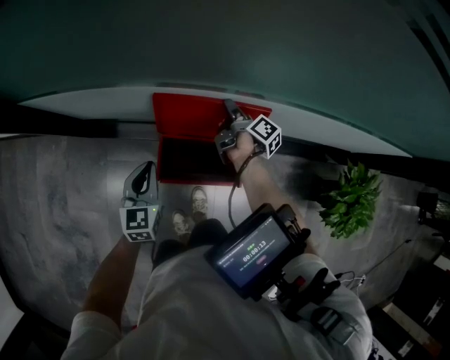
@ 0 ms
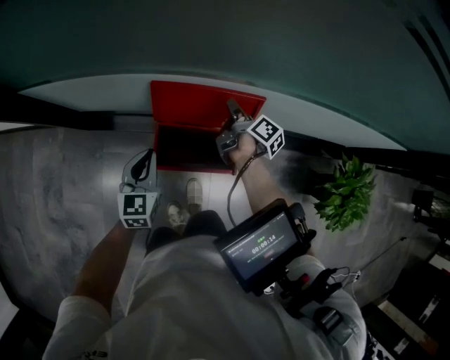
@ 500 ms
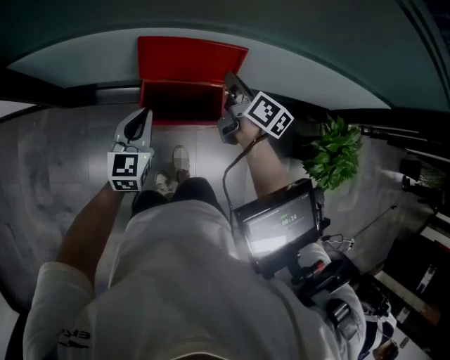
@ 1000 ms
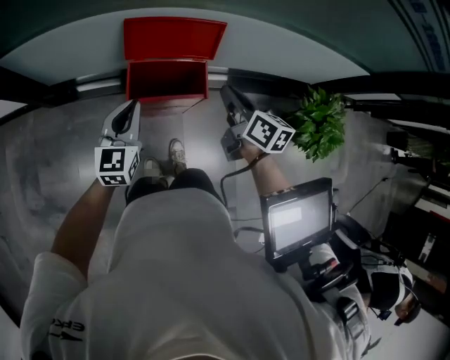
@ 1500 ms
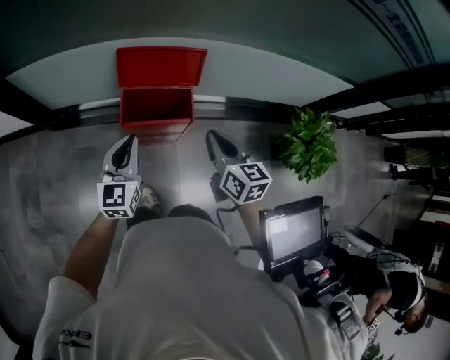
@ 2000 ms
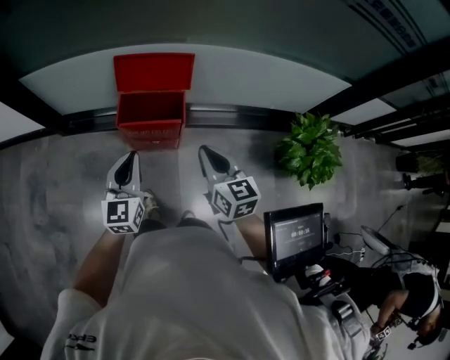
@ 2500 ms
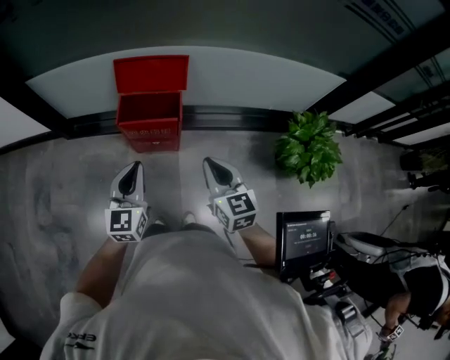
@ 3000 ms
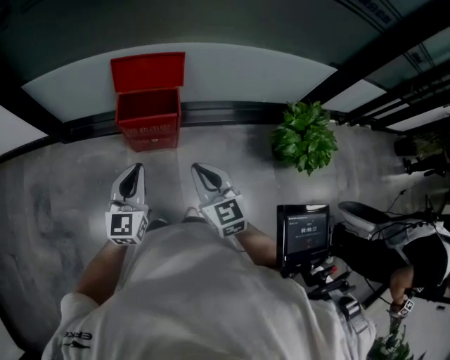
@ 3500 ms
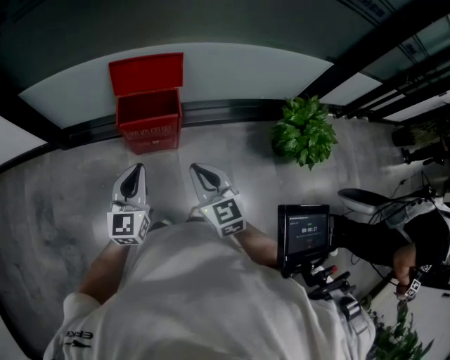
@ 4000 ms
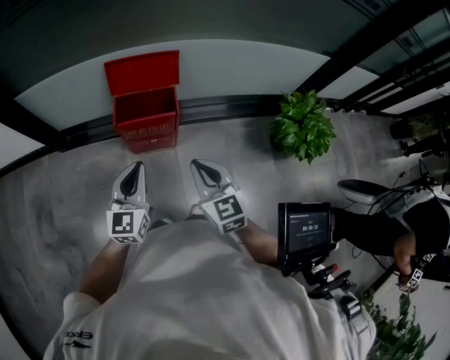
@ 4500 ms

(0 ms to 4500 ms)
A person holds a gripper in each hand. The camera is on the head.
0 ms - 2000 ms: The right gripper shifts approximately 40 cm backward and upward, and rotates around the line of its fingers by about 60 degrees, counterclockwise from behind. The left gripper travels backward and upward by approximately 25 cm.
2000 ms - 4500 ms: The two grippers go approximately 20 cm backward. The right gripper rotates roughly 20 degrees.

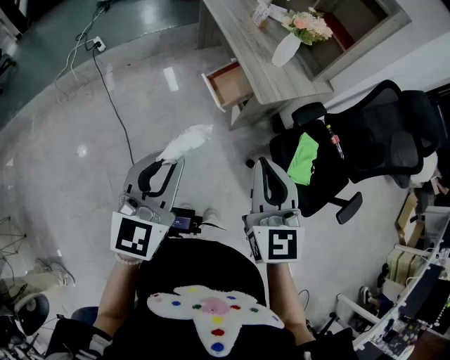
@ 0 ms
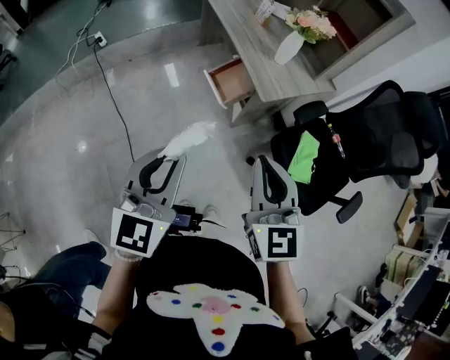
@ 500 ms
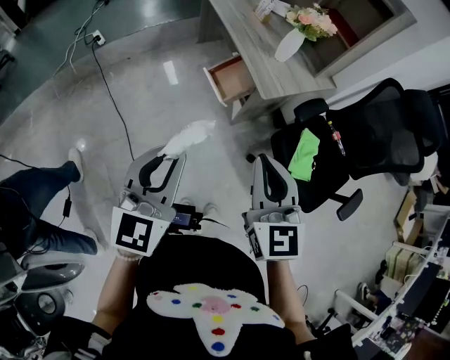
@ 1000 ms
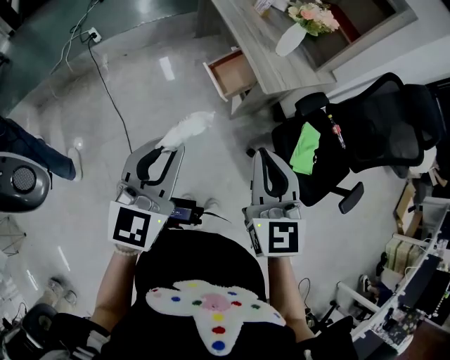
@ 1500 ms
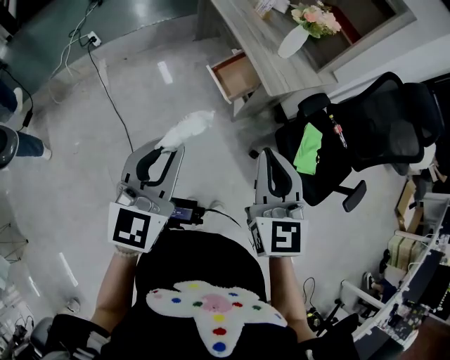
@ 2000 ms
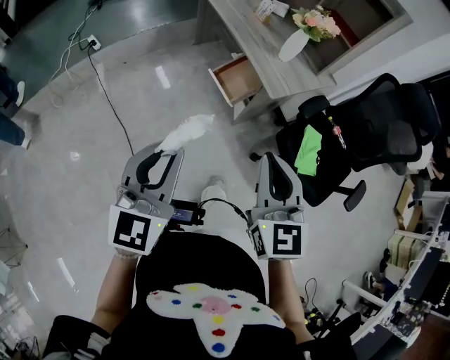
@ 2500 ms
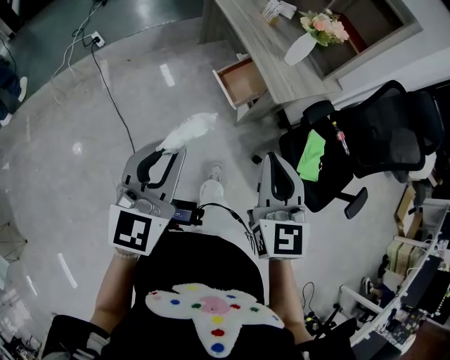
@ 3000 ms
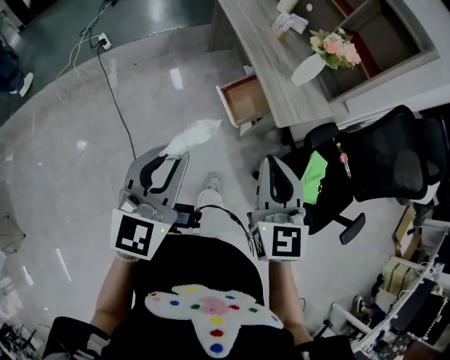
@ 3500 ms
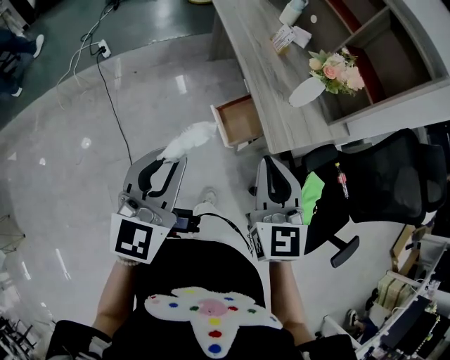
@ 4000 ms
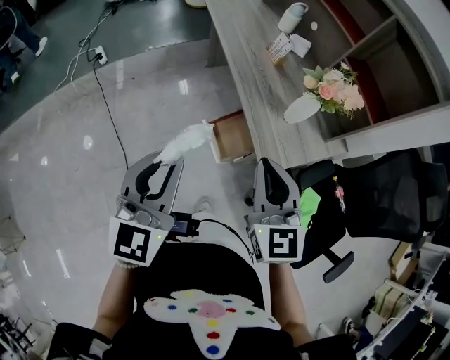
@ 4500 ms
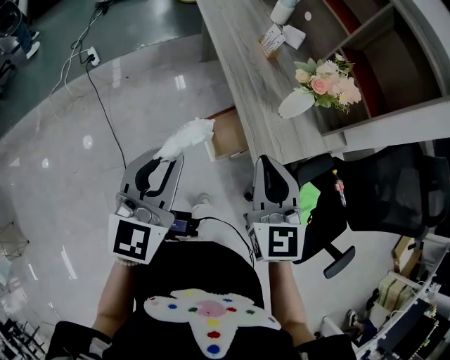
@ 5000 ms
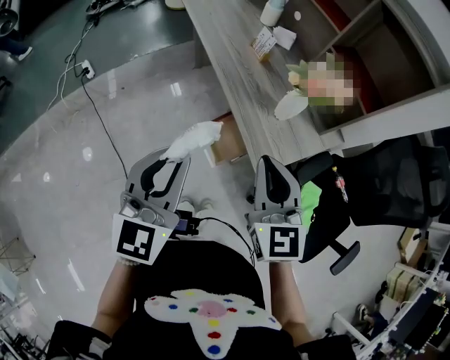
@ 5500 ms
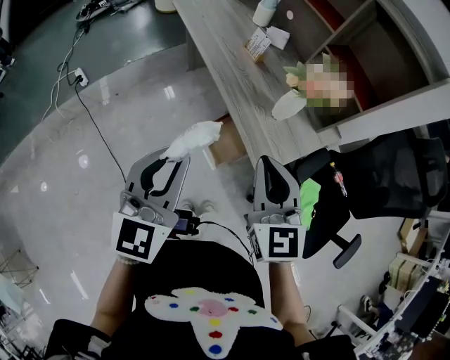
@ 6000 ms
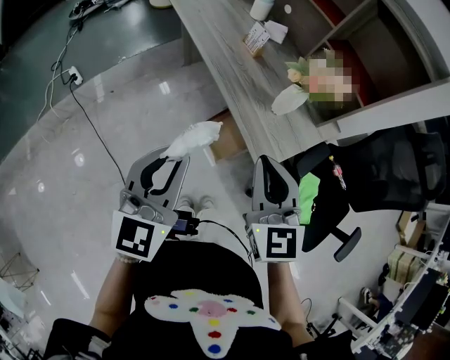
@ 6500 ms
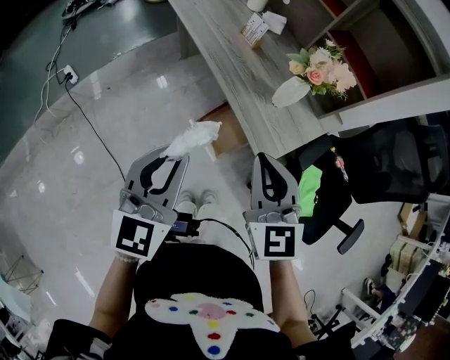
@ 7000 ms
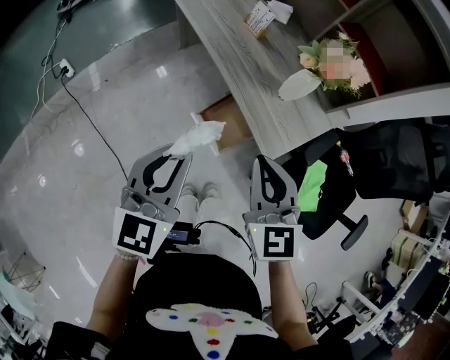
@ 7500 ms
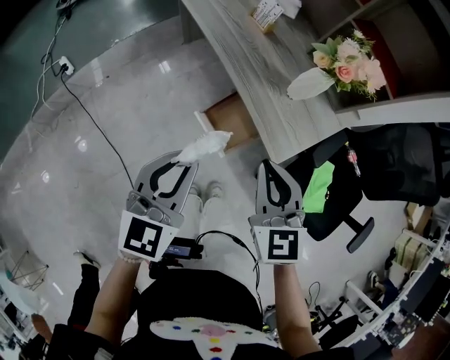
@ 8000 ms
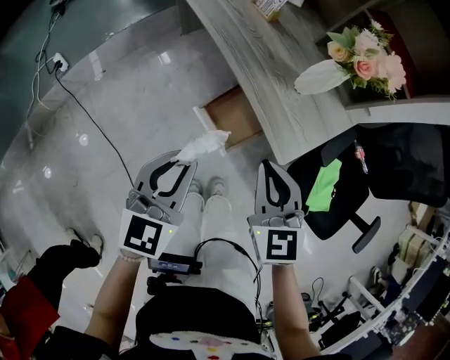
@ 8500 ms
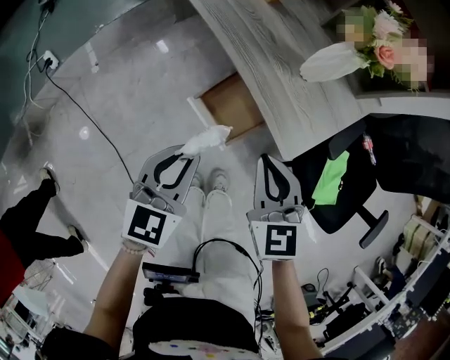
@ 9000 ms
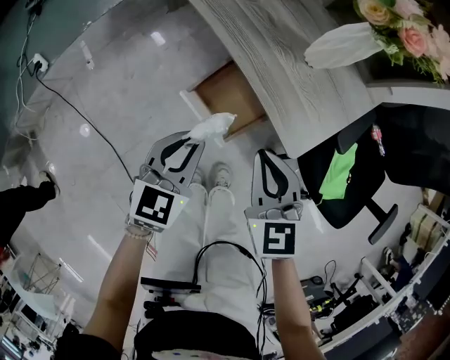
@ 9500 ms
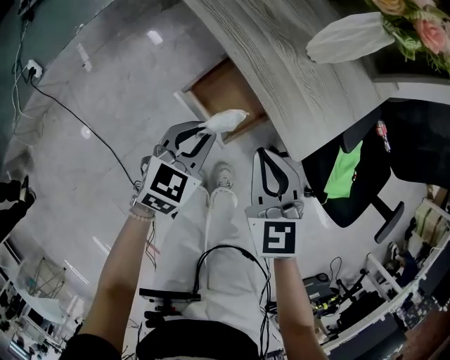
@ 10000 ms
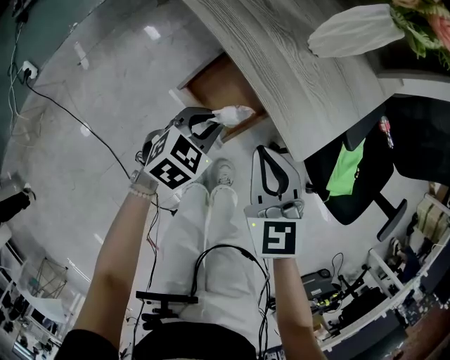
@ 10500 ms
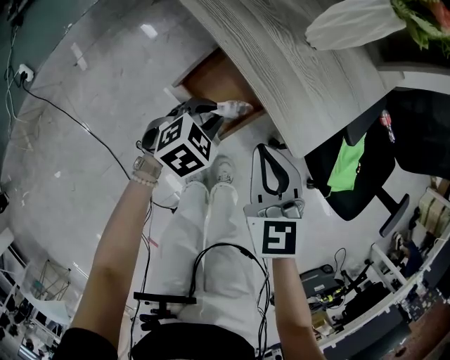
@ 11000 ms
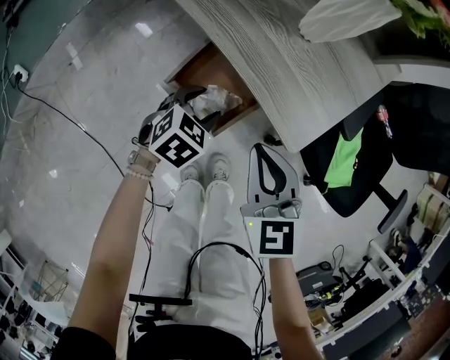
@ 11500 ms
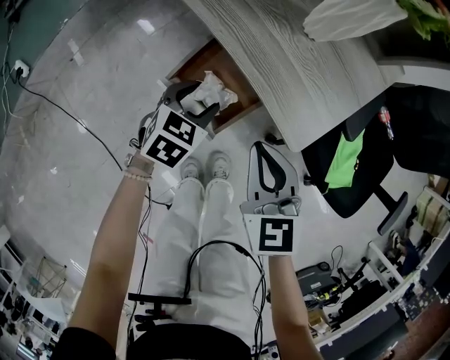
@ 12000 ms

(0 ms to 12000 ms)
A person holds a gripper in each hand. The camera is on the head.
0 ms - 2000 ms: The left gripper is displaced to the left by some 5 cm.
2000 ms - 4000 ms: The grippers both shift forward by about 20 cm.
4000 ms - 6000 ms: Both grippers travel together forward, some 10 cm.
6000 ms - 8000 ms: The grippers both shift downward by some 10 cm.
8000 ms - 10000 ms: The right gripper heads downward, covering roughly 20 cm, while the left gripper heads downward, covering about 25 cm, and swivels roughly 30 degrees.
10000 ms - 12000 ms: The left gripper goes some 10 cm downward and forward, and opens.

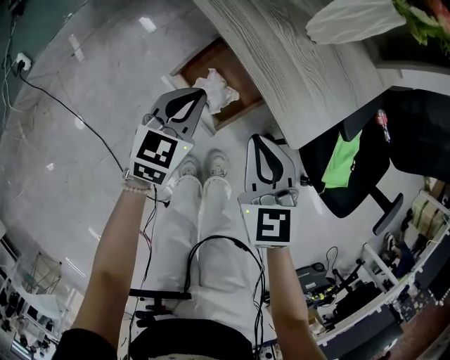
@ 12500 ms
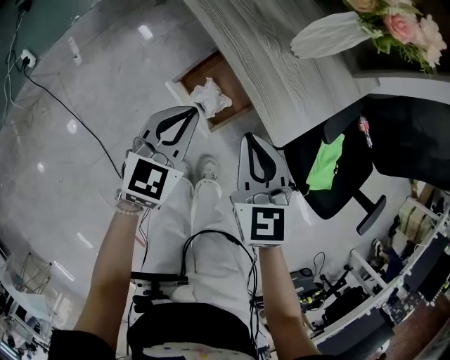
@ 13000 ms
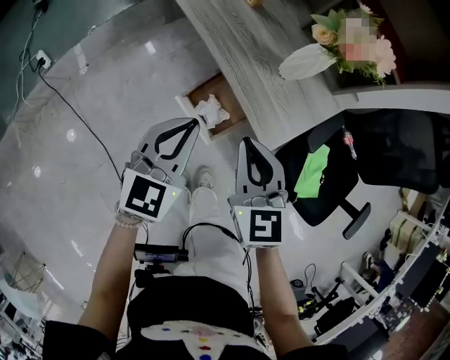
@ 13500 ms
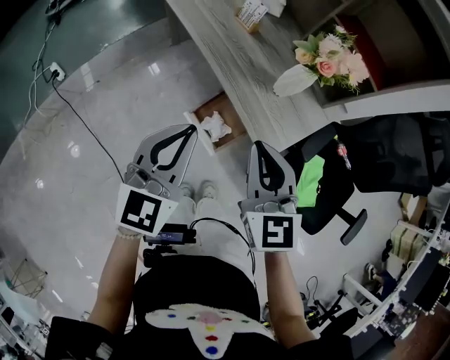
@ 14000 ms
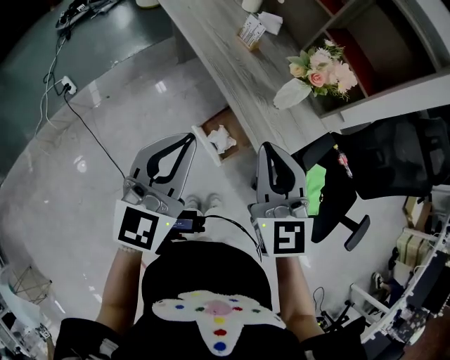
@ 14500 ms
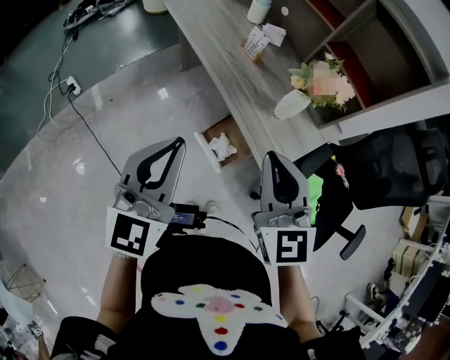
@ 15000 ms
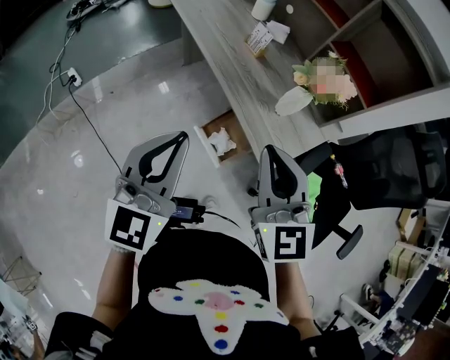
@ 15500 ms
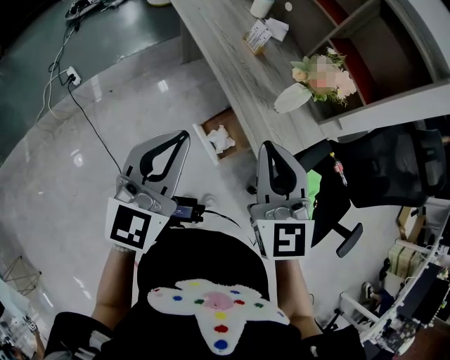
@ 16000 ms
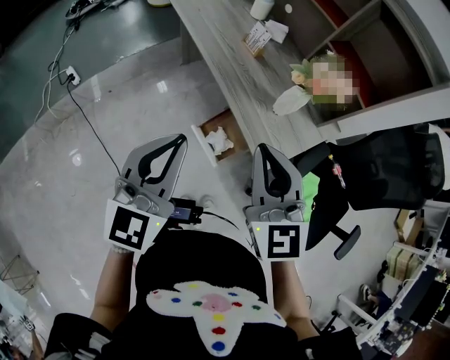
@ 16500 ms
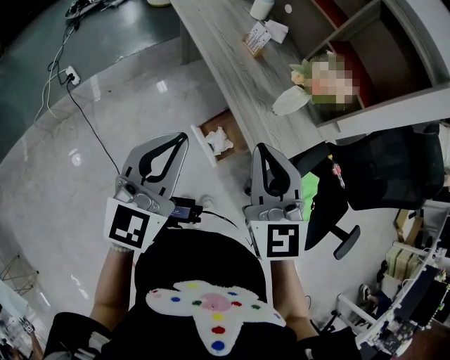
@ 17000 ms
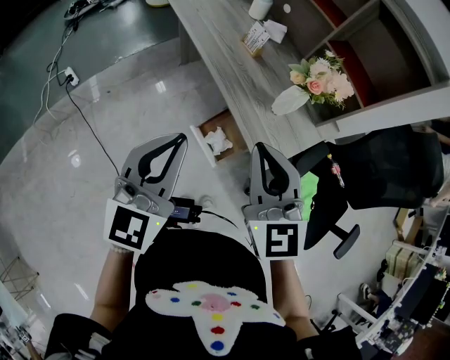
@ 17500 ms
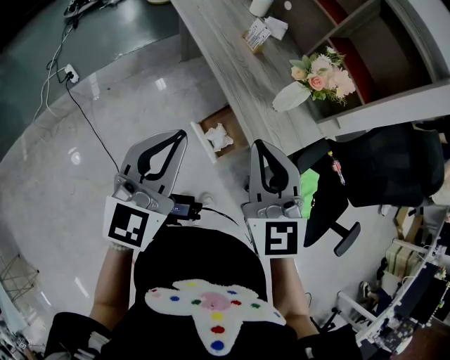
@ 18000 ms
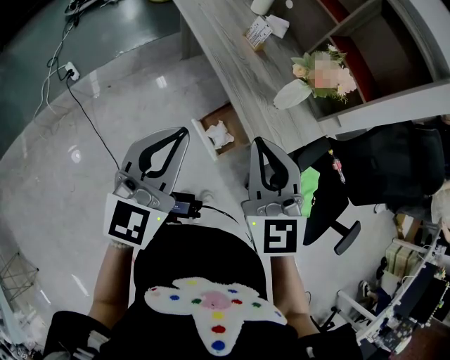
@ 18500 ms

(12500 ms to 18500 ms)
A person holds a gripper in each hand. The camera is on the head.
12500 ms - 14500 ms: The two grippers go roughly 35 cm upward. The right gripper swivels about 30 degrees. The left gripper rotates about 30 degrees.
14500 ms - 16500 ms: There are only small adjustments of the grippers.
16500 ms - 18500 ms: The two grippers keep their place.

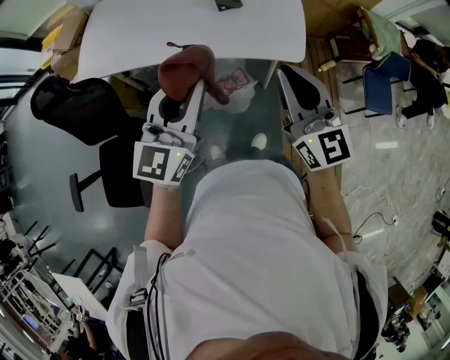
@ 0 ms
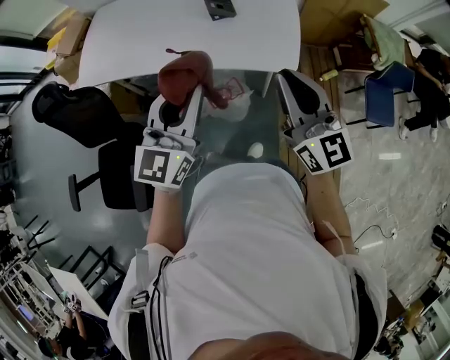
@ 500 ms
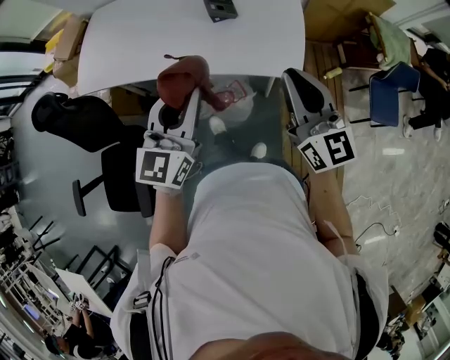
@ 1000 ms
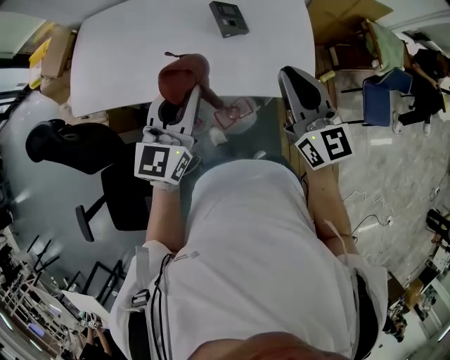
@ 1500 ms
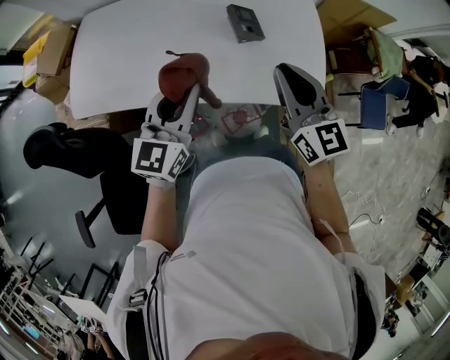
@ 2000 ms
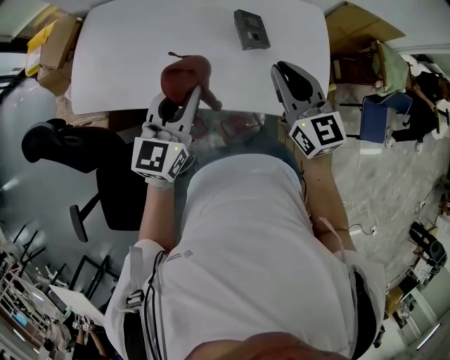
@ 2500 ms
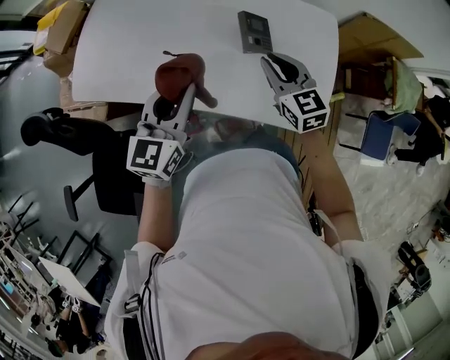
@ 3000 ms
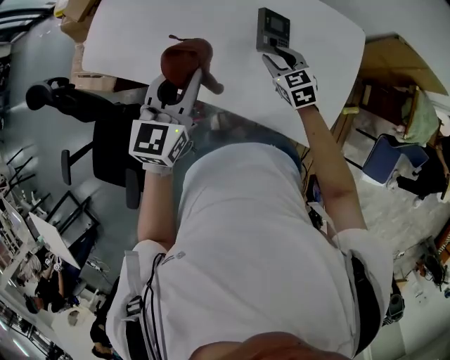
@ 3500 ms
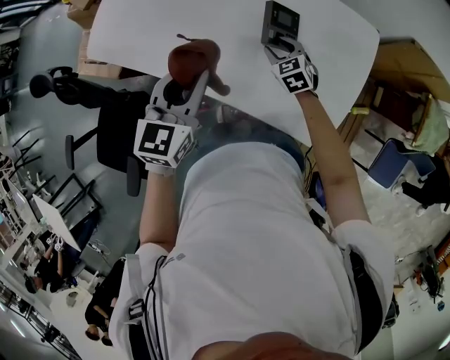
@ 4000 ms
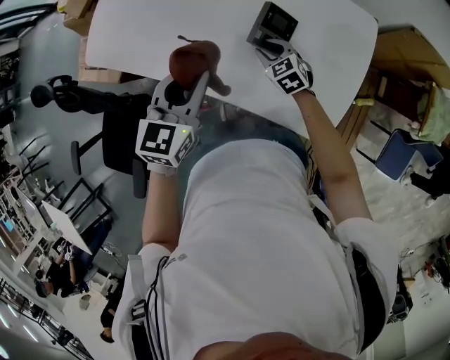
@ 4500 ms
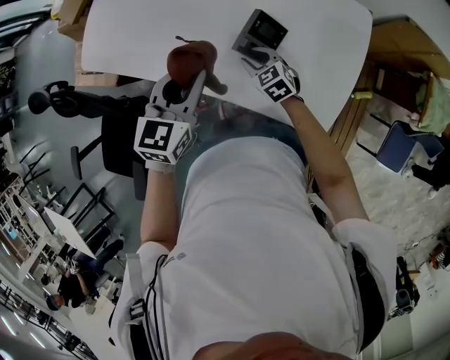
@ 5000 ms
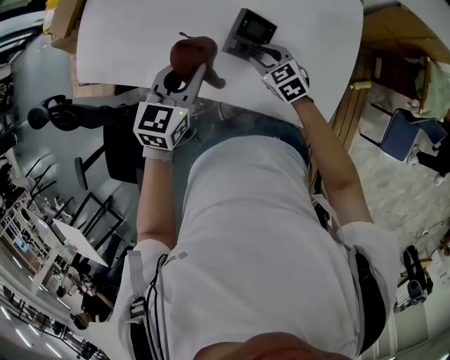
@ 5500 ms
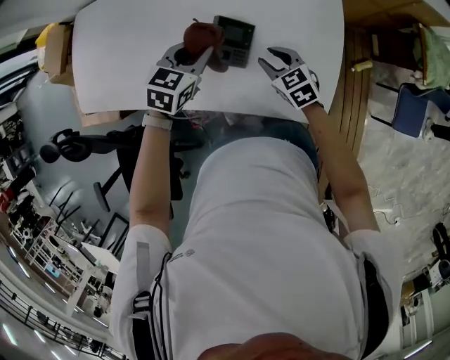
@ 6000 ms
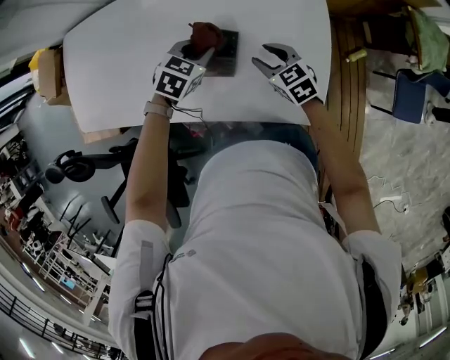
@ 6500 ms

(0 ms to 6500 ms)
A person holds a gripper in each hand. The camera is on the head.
0 ms - 2000 ms: The left gripper travels forward and to the left by about 25 cm. The right gripper is displaced forward by approximately 25 cm.
2000 ms - 4500 ms: The left gripper shifts by approximately 15 cm, and rotates some 30 degrees, while the right gripper moves downward, roughly 30 cm, points its fingers some 40 degrees further downward, and opens its fingers.
4500 ms - 6500 ms: The left gripper is displaced downward, to the right and forward by approximately 25 cm, and swivels some 50 degrees. Meanwhile the right gripper is displaced to the right by roughly 10 cm, and rotates roughly 20 degrees.
